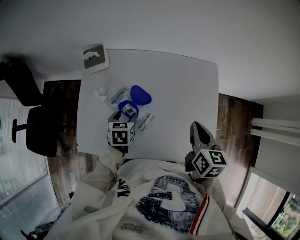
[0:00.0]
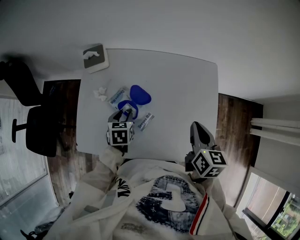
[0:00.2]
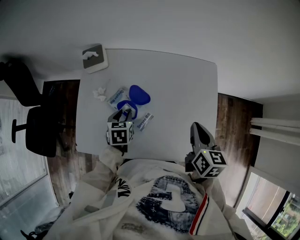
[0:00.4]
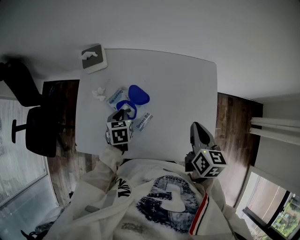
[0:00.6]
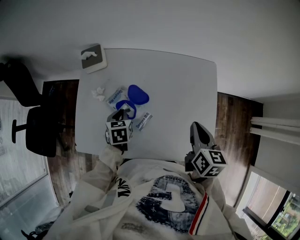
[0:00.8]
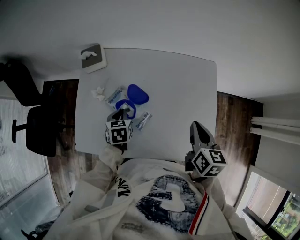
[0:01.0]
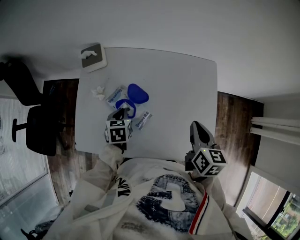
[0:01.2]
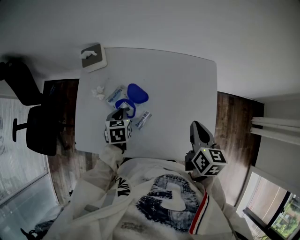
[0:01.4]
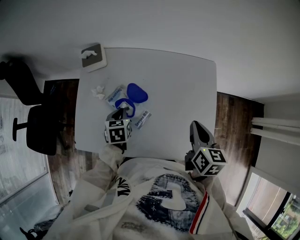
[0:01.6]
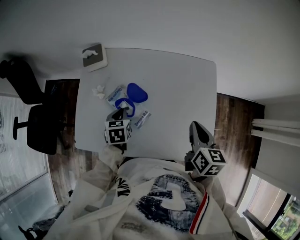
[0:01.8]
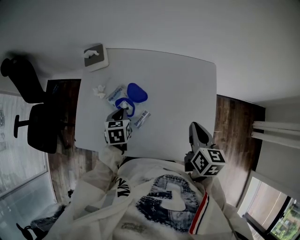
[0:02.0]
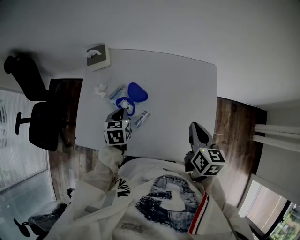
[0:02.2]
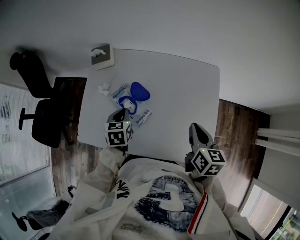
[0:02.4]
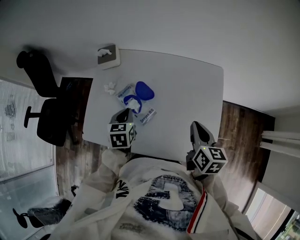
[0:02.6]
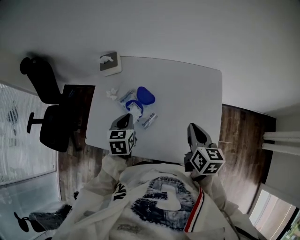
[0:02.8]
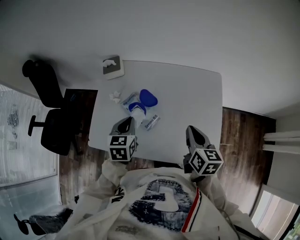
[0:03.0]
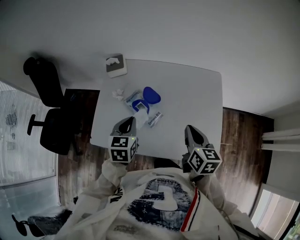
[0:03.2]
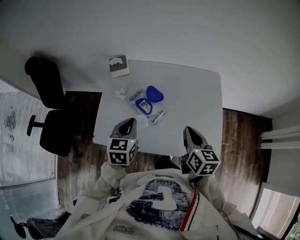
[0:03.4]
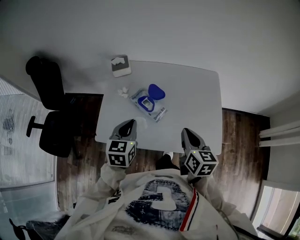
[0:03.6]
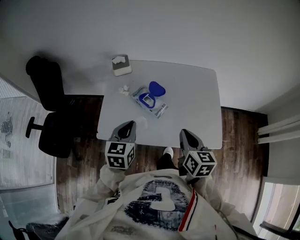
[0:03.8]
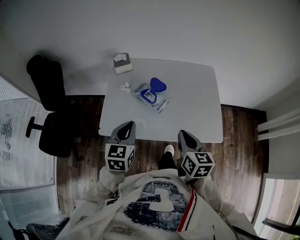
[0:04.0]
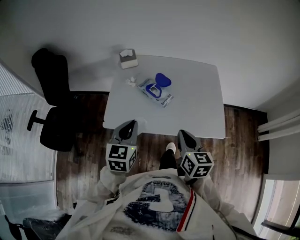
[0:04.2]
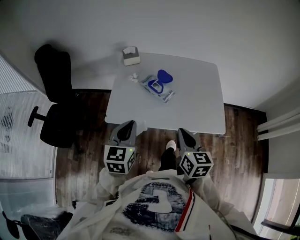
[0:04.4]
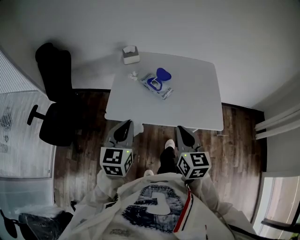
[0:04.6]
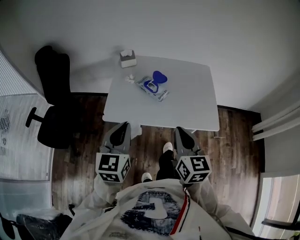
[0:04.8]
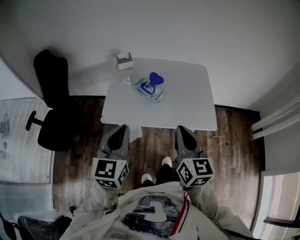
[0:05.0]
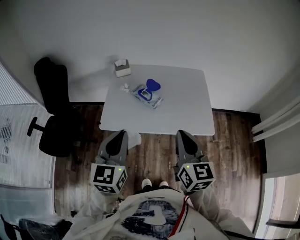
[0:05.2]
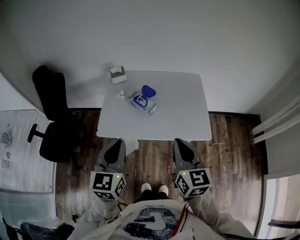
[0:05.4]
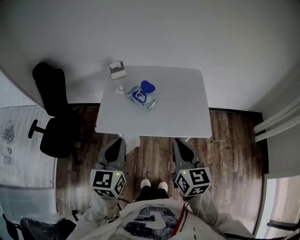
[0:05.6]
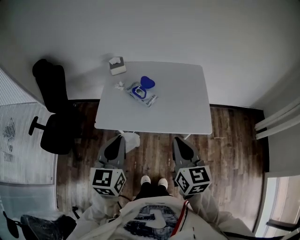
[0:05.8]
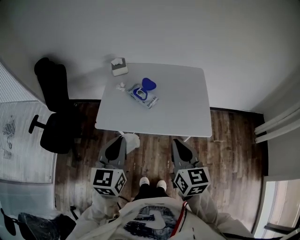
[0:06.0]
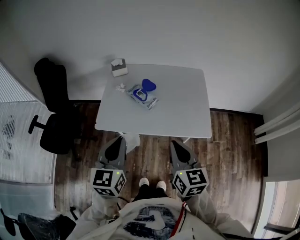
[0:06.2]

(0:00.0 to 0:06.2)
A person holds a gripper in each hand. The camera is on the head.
0:00.0 - 0:01.6: The left gripper closes.
0:01.6 - 0:03.2: The left gripper travels upward and backward by roughly 15 cm, while the right gripper moves to the left, roughly 5 cm.
0:03.2 - 0:04.6: The right gripper moves backward and to the left, some 25 cm. Meanwhile the left gripper shifts approximately 25 cm backward and upward.
0:04.6 - 0:06.2: The left gripper moves to the right and upward, approximately 10 cm. The right gripper shifts roughly 5 cm to the right.

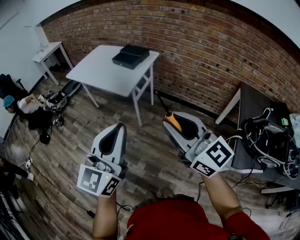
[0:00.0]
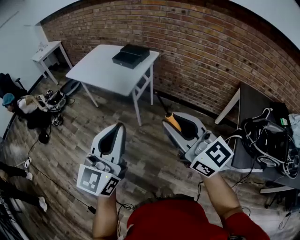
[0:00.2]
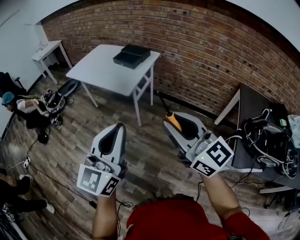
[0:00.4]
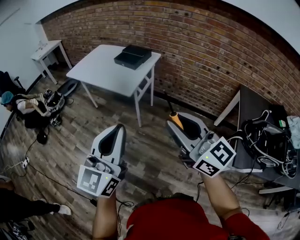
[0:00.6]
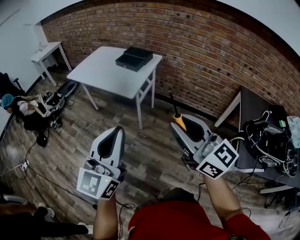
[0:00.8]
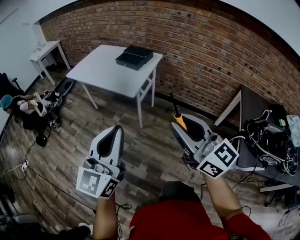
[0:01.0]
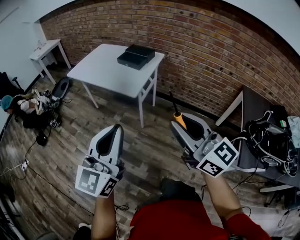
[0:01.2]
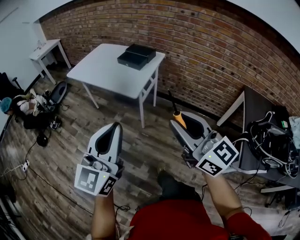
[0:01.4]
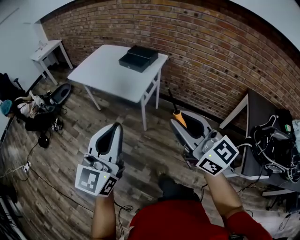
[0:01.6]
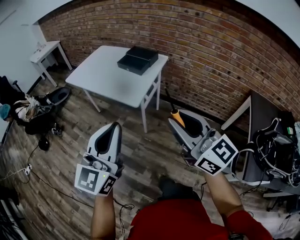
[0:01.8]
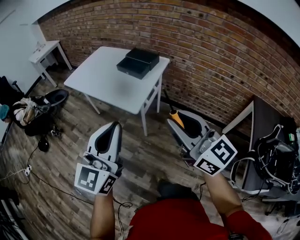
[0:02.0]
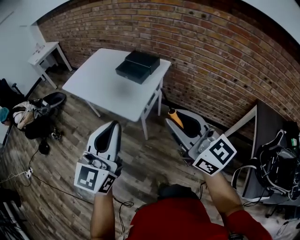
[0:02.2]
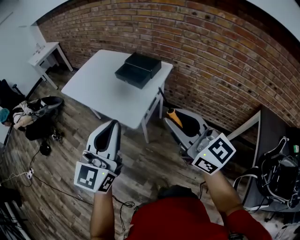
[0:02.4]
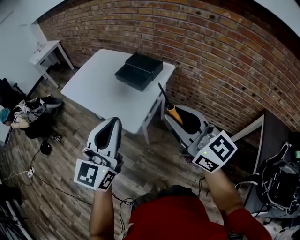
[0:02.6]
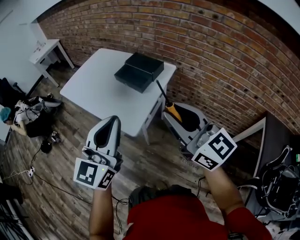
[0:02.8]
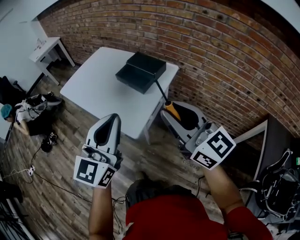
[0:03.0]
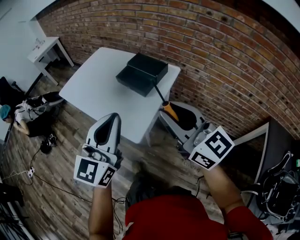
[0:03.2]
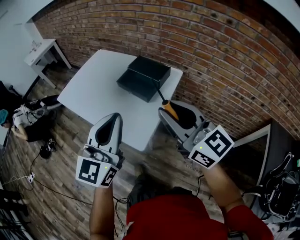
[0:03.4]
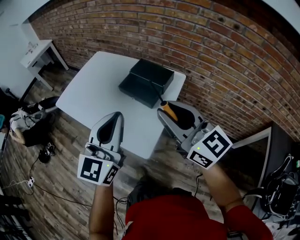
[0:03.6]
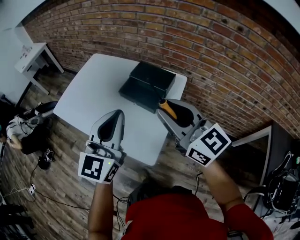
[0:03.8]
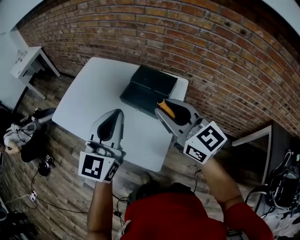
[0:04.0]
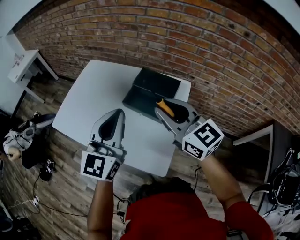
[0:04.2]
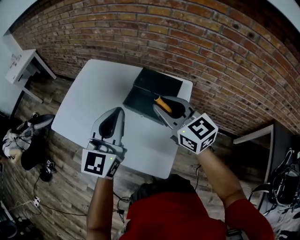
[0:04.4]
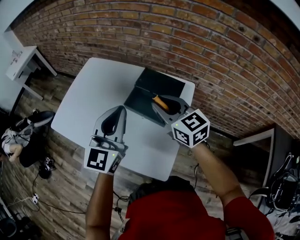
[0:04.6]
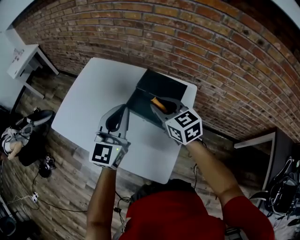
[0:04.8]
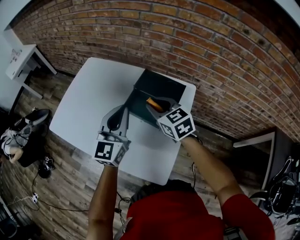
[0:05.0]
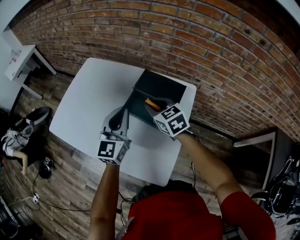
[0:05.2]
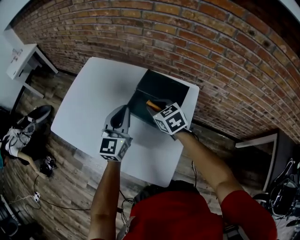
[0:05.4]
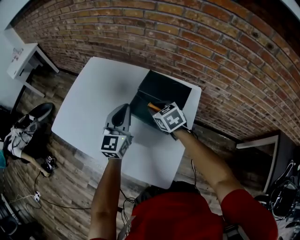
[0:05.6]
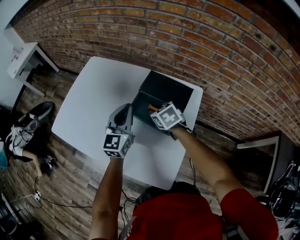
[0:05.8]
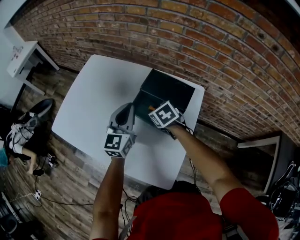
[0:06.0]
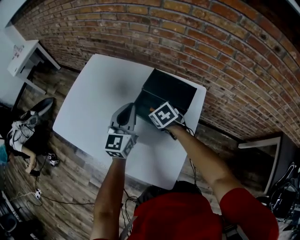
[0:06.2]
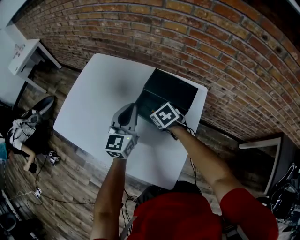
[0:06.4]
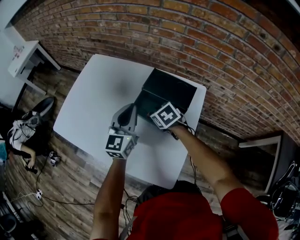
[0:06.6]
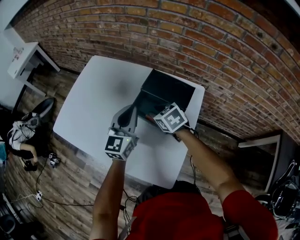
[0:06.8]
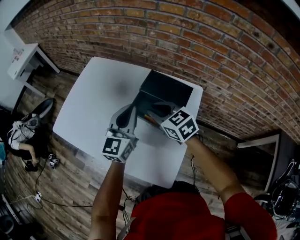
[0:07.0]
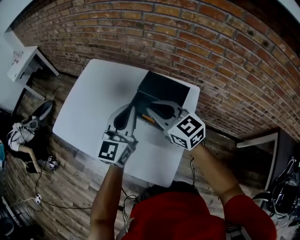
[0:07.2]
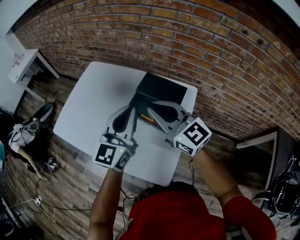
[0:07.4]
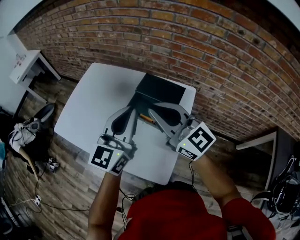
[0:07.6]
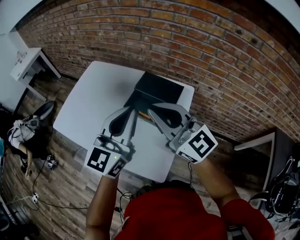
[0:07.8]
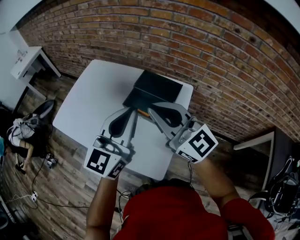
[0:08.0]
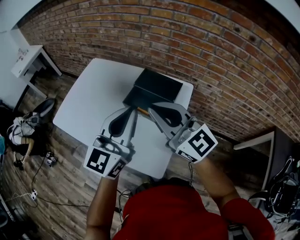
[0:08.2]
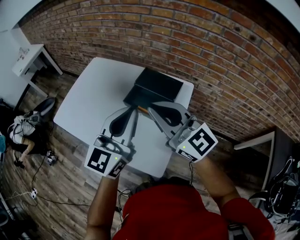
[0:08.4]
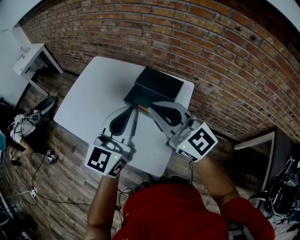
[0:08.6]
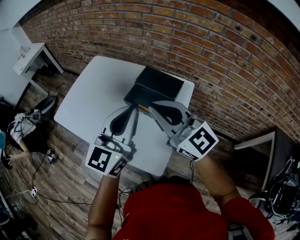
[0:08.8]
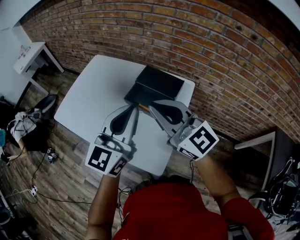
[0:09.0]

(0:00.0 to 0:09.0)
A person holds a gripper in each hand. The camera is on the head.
0:00.0 - 0:01.6: The right gripper shifts about 10 cm forward and to the left. Meanwhile the left gripper is displaced to the left and forward by approximately 15 cm.
0:01.6 - 0:03.0: The two grippers go about 30 cm forward.
0:03.0 - 0:04.4: Both grippers travel together forward, approximately 30 cm.
0:04.4 - 0:06.0: Both grippers move downward and forward, about 25 cm. The right gripper angles its fingers downward, by about 50 degrees.
0:06.0 - 0:07.6: The right gripper moves upward and backward, approximately 30 cm, and angles its fingers upward, by approximately 60 degrees; the left gripper is displaced upward and backward by some 20 cm.
0:07.6 - 0:09.0: The grippers both shift backward by some 5 cm.

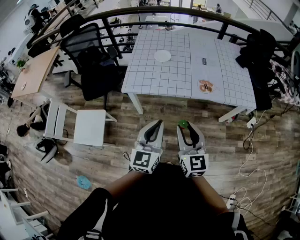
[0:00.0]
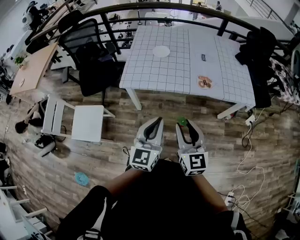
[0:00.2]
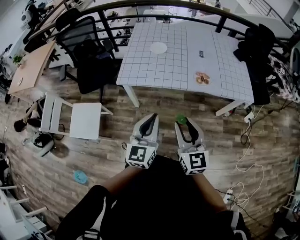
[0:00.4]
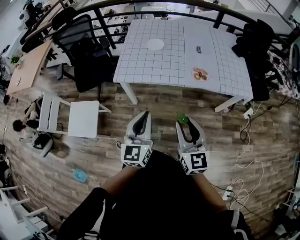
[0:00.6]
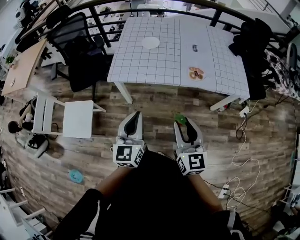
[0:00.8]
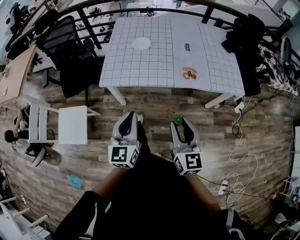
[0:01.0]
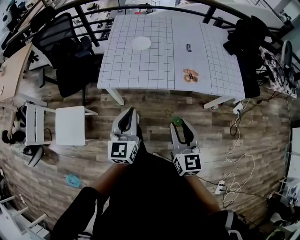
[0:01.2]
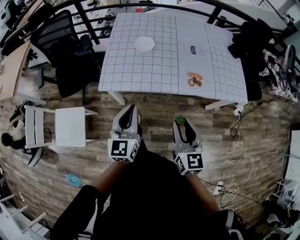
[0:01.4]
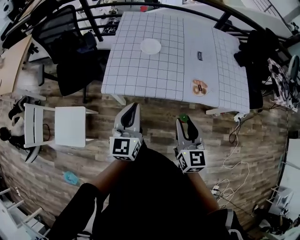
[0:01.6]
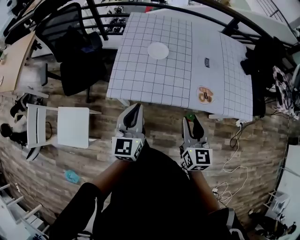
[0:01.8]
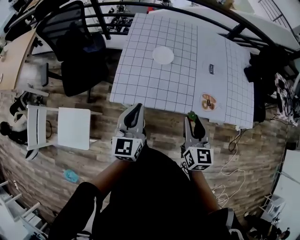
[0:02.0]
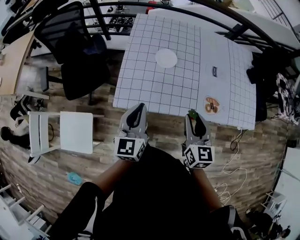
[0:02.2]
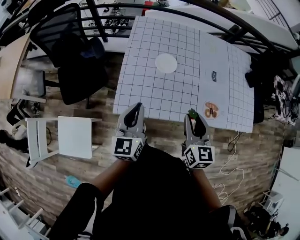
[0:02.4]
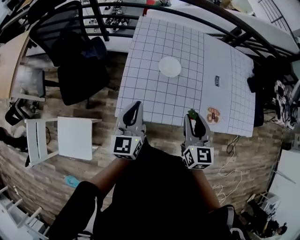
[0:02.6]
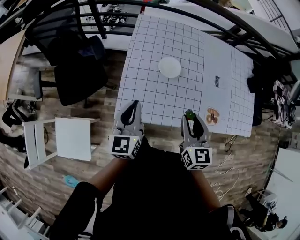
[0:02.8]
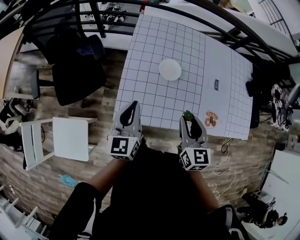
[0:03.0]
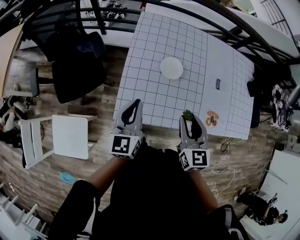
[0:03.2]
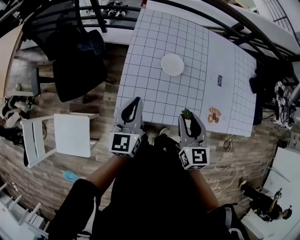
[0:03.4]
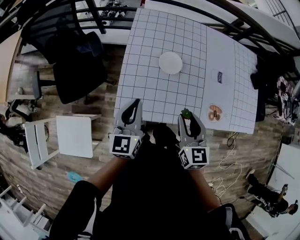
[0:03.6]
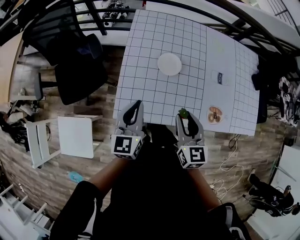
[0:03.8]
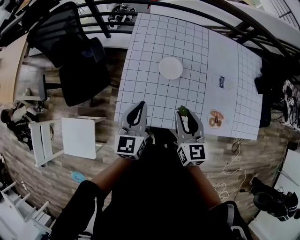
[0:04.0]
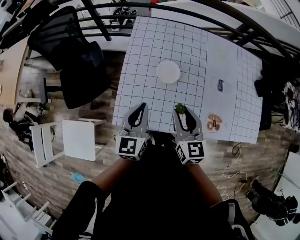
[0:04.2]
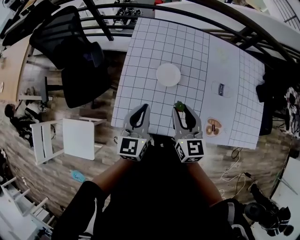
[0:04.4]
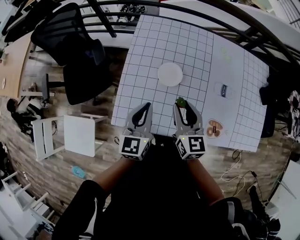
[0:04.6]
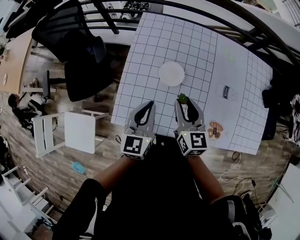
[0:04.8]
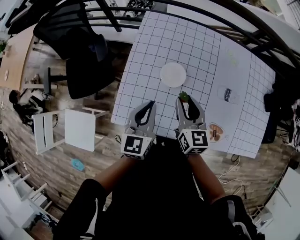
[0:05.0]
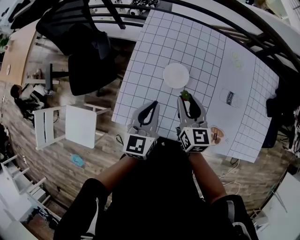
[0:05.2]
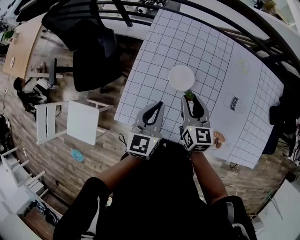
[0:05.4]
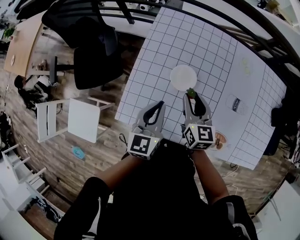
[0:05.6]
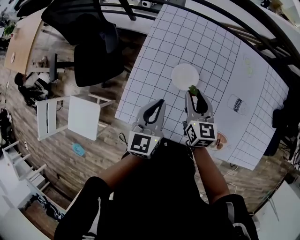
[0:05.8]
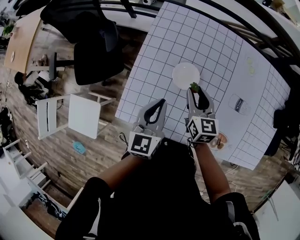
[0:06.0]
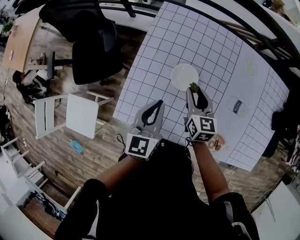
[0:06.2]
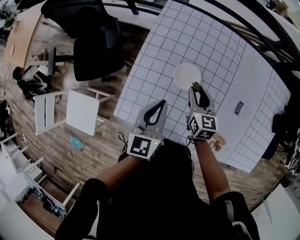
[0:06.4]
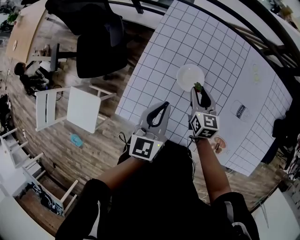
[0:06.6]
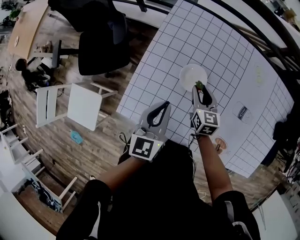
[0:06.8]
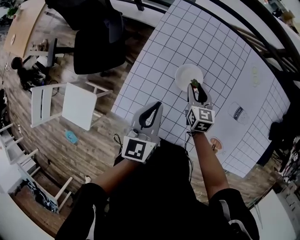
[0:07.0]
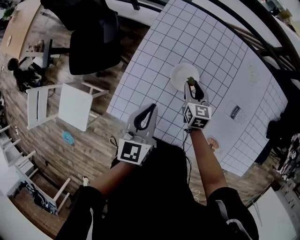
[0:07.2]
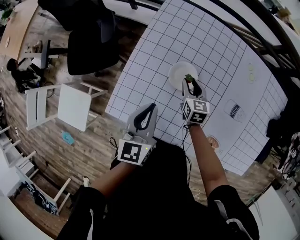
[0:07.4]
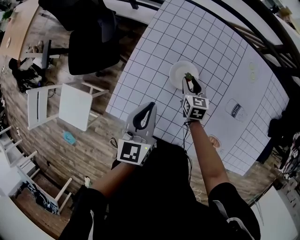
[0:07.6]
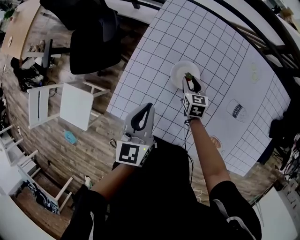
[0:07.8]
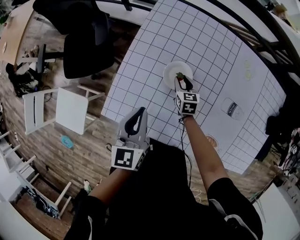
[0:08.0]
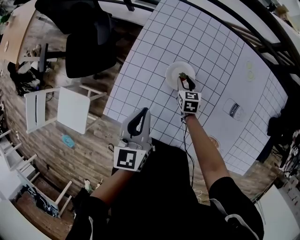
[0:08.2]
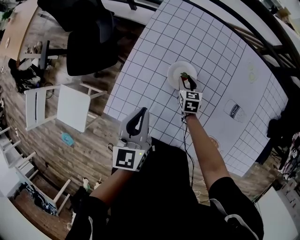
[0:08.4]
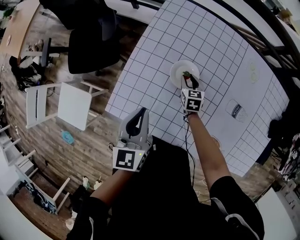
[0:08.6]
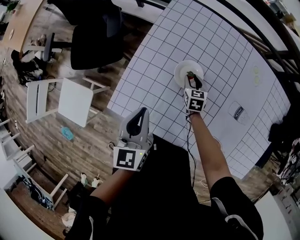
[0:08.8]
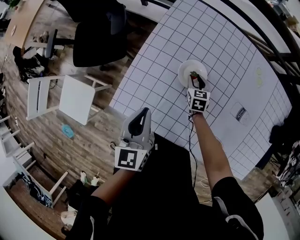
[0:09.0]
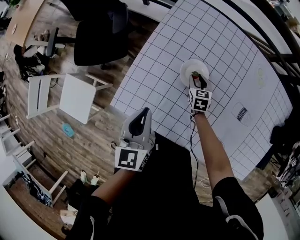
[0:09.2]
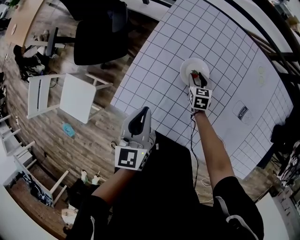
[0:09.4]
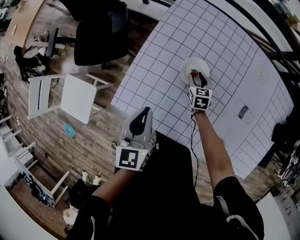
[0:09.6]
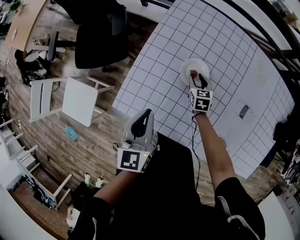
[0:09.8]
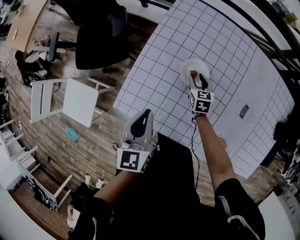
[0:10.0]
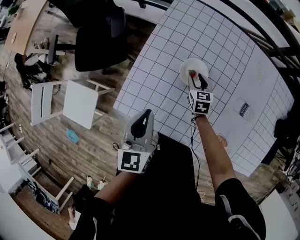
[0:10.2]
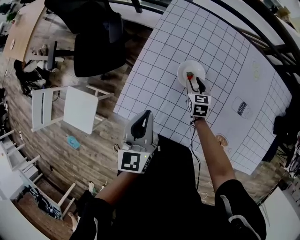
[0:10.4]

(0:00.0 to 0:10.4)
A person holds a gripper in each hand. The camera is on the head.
0:00.0 - 0:01.4: The two grippers go roughly 15 cm forward.
0:01.4 - 0:03.0: The grippers both shift forward and to the left by some 35 cm.
0:03.0 - 0:04.4: The left gripper goes approximately 10 cm to the right. The right gripper moves forward, approximately 10 cm.
0:04.4 - 0:06.0: The right gripper is displaced forward and downward by approximately 15 cm. Meanwhile the left gripper moves forward, some 5 cm.
0:06.0 - 0:07.4: The right gripper goes roughly 15 cm downward.
0:07.4 - 0:09.0: The right gripper heads downward, covering some 10 cm. The left gripper heads to the left, covering approximately 5 cm.
0:09.0 - 0:10.4: The right gripper shifts by about 5 cm.
